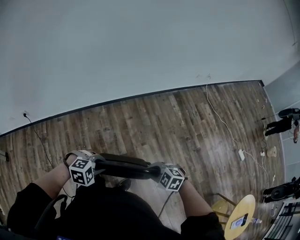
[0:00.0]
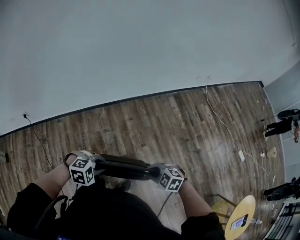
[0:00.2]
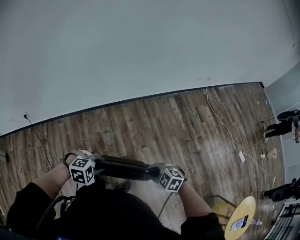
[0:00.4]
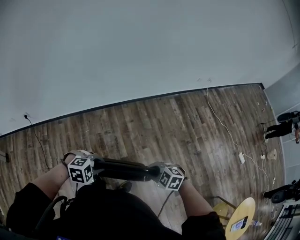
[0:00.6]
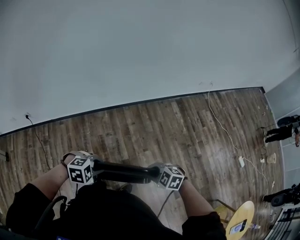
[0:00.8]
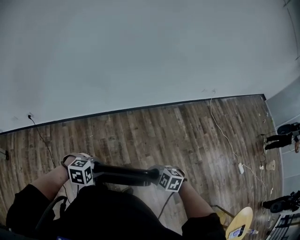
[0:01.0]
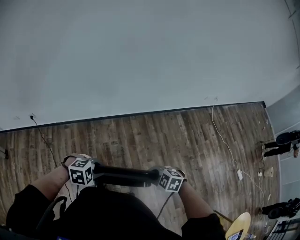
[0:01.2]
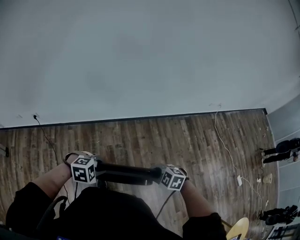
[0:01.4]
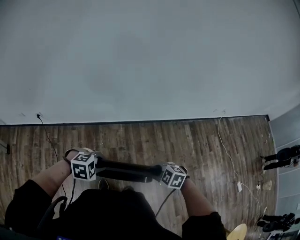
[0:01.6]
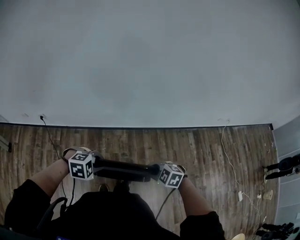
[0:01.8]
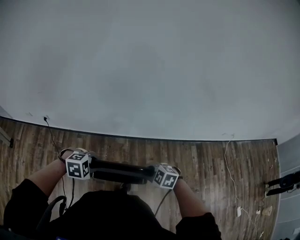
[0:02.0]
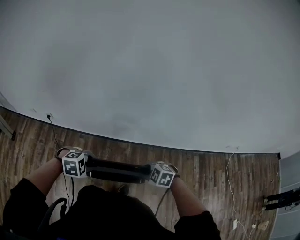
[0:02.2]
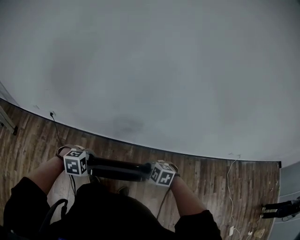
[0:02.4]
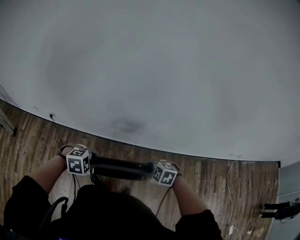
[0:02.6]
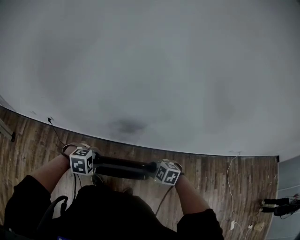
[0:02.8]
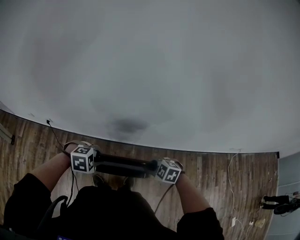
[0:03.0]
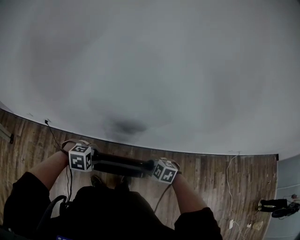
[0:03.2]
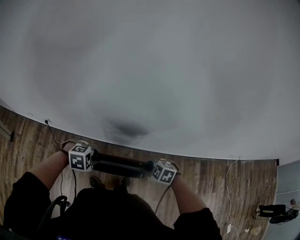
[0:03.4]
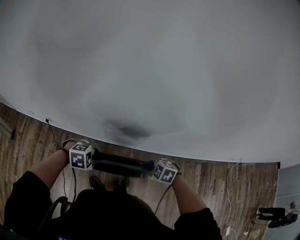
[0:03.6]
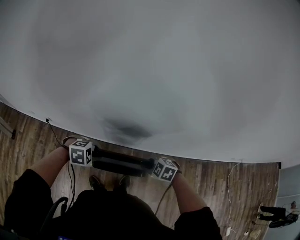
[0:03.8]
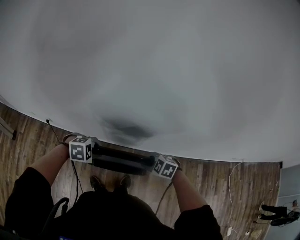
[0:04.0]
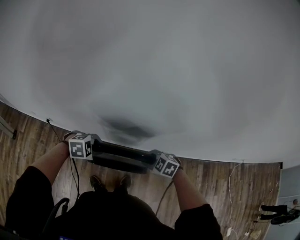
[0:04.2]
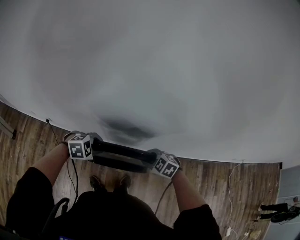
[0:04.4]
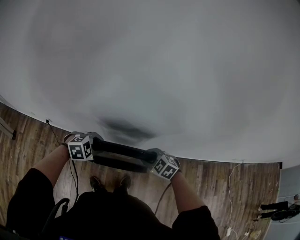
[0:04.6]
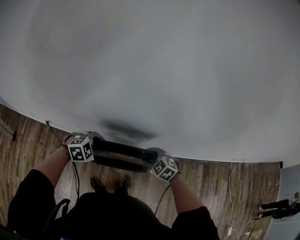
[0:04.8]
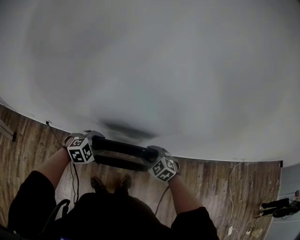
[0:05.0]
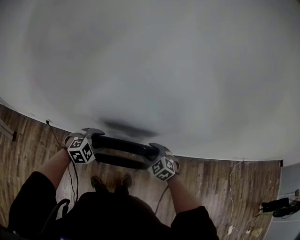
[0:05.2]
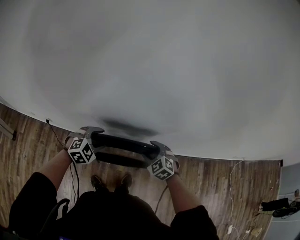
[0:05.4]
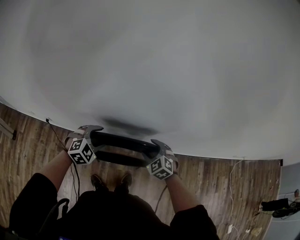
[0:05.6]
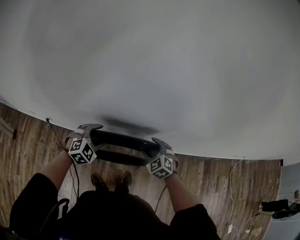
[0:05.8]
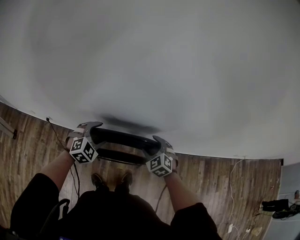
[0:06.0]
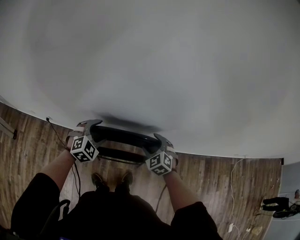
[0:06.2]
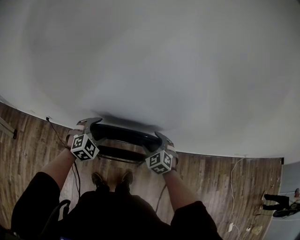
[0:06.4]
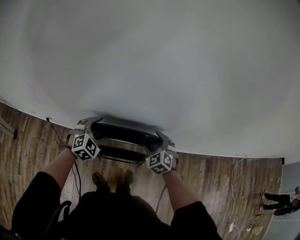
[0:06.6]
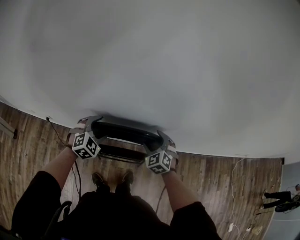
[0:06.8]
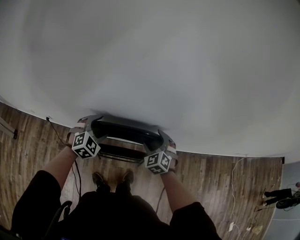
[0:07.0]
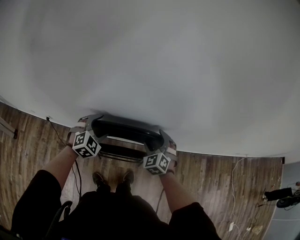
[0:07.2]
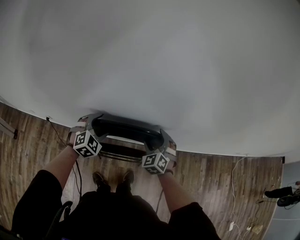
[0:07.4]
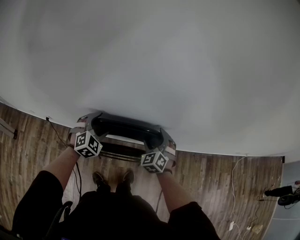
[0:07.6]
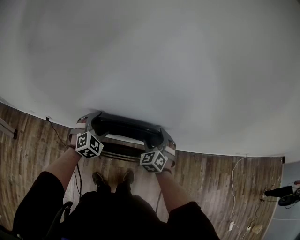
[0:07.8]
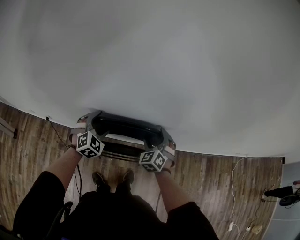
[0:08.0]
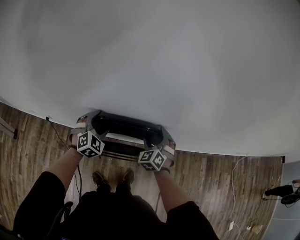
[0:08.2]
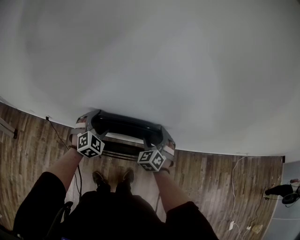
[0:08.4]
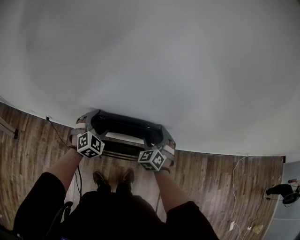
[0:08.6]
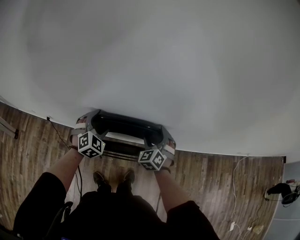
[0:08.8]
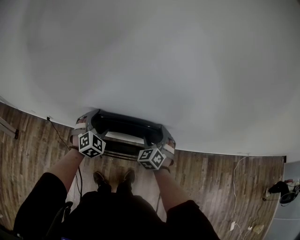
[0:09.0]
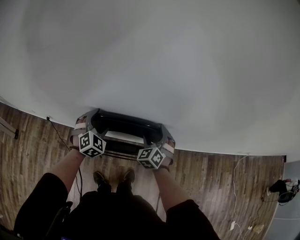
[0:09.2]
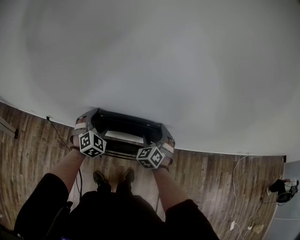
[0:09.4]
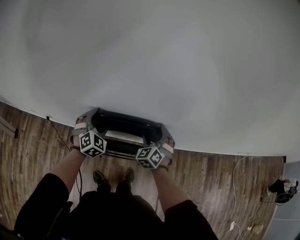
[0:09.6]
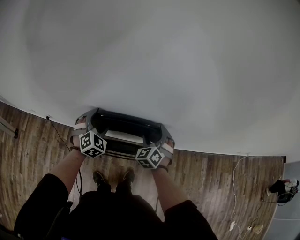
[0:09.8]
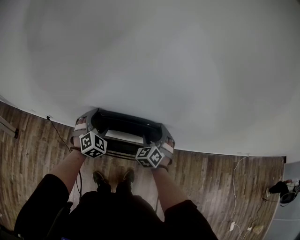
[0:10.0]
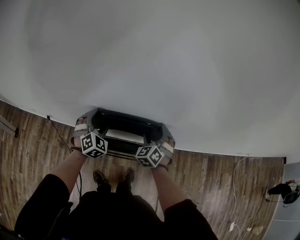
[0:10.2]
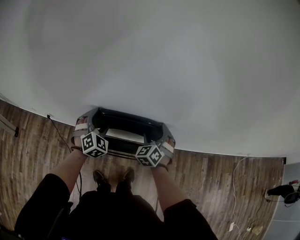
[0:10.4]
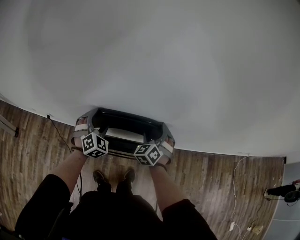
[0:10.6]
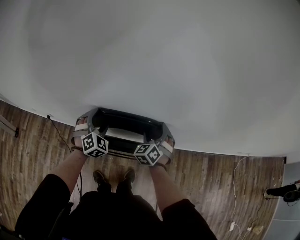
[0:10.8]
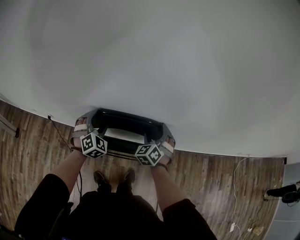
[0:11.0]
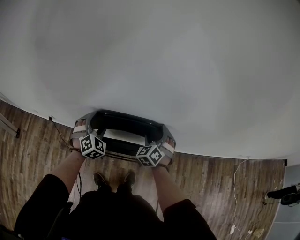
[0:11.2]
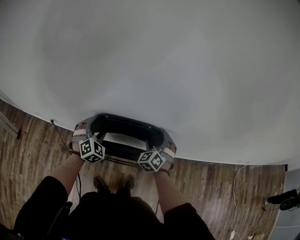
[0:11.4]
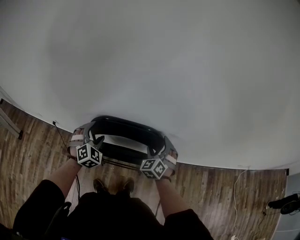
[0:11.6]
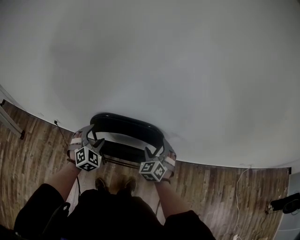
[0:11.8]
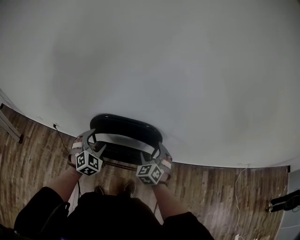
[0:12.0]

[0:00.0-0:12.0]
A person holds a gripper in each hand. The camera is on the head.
0:00.0 to 0:01.6: The right gripper changes place by approximately 25 cm; the left gripper ends up some 20 cm from where it was.
0:01.6 to 0:03.0: The left gripper ends up roughly 25 cm from where it was. Meanwhile the right gripper changes place by some 30 cm.
0:03.0 to 0:04.4: The right gripper shifts by roughly 10 cm, while the left gripper changes place by approximately 10 cm.
0:04.4 to 0:06.0: The left gripper changes place by some 5 cm, rotates about 30 degrees, and opens up, while the right gripper moves some 5 cm, turns by roughly 30 degrees, and opens its fingers.
0:06.0 to 0:07.6: The left gripper heads forward, covering some 5 cm.
0:07.6 to 0:10.4: The grippers move only a little.
0:10.4 to 0:12.0: The grippers both shift backward by roughly 10 cm.

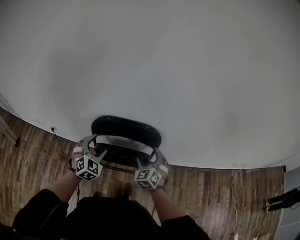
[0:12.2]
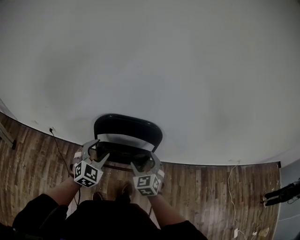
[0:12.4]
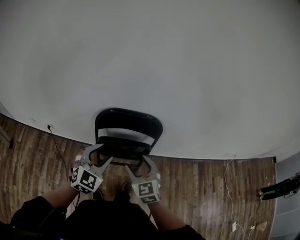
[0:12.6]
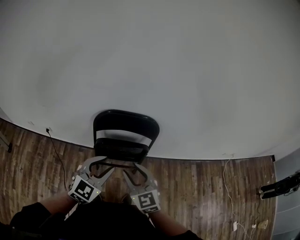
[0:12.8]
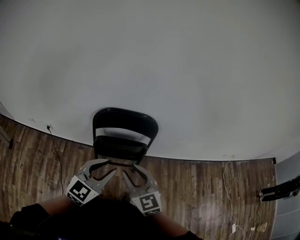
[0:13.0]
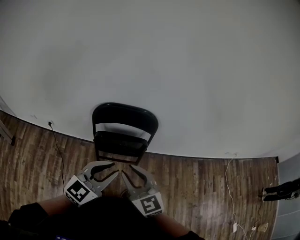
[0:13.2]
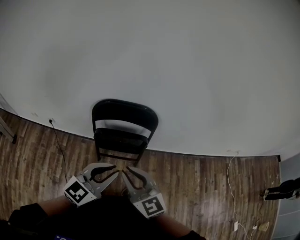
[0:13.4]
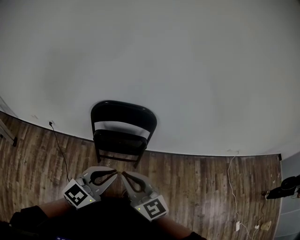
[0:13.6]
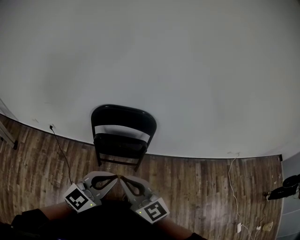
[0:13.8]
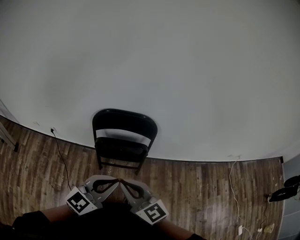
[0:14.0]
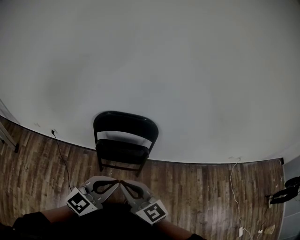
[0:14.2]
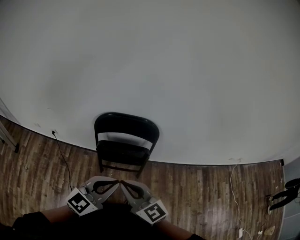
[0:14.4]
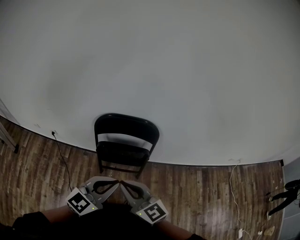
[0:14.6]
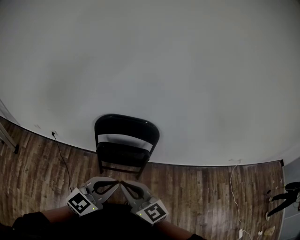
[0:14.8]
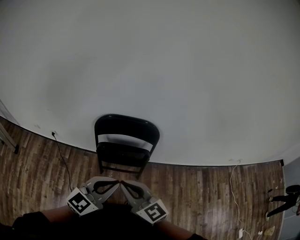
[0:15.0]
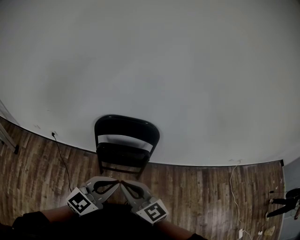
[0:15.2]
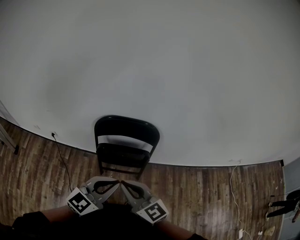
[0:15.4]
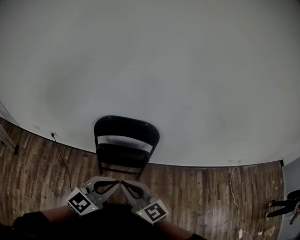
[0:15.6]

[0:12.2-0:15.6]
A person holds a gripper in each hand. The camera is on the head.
0:12.2 to 0:13.8: The left gripper is displaced backward, upward and to the right by roughly 30 cm, rotates roughly 50 degrees, and closes. The right gripper moves backward and upward, about 30 cm, turns by about 50 degrees, and closes.
0:13.8 to 0:15.6: The grippers move only a little.

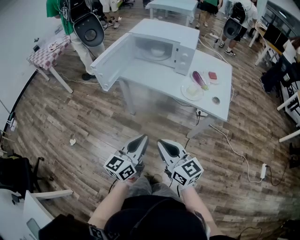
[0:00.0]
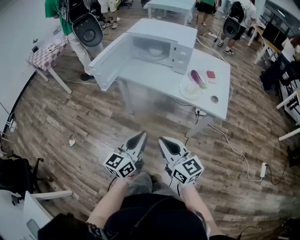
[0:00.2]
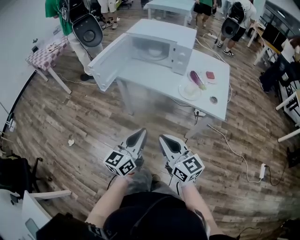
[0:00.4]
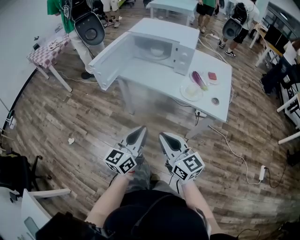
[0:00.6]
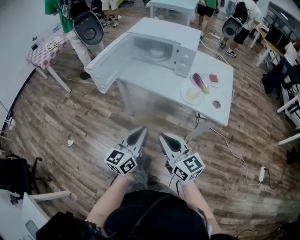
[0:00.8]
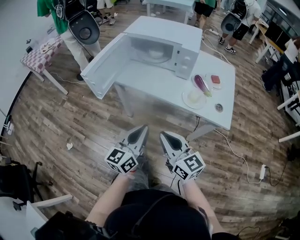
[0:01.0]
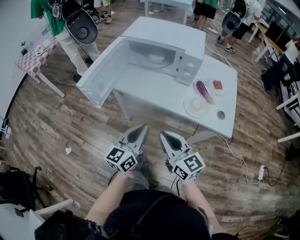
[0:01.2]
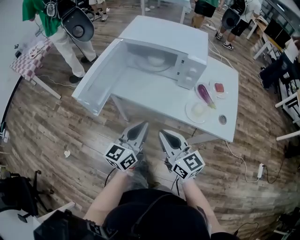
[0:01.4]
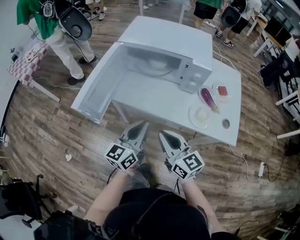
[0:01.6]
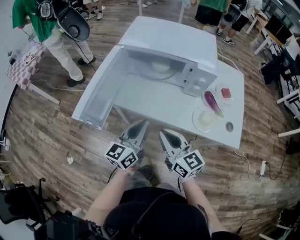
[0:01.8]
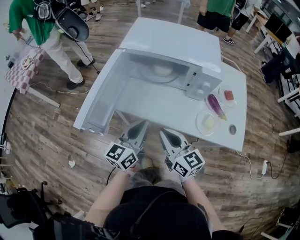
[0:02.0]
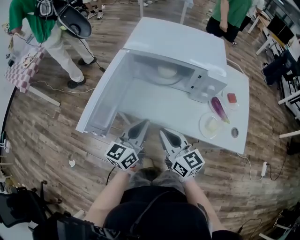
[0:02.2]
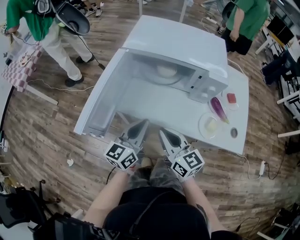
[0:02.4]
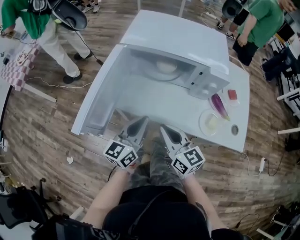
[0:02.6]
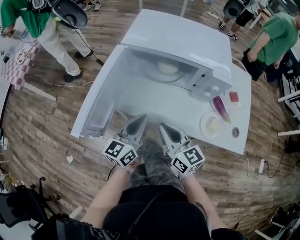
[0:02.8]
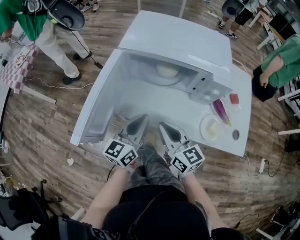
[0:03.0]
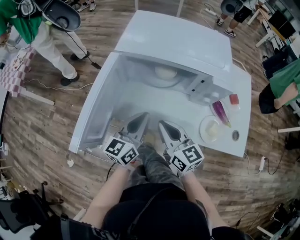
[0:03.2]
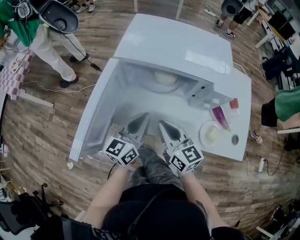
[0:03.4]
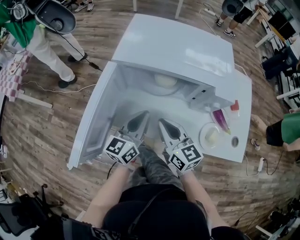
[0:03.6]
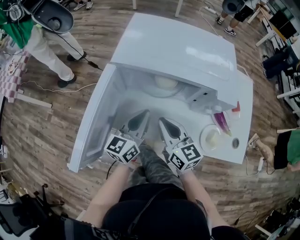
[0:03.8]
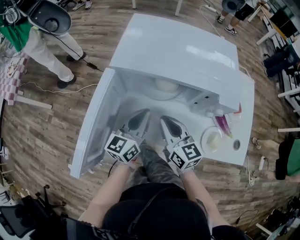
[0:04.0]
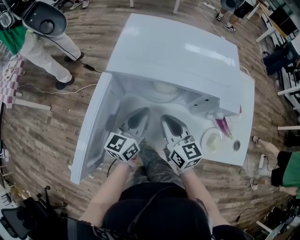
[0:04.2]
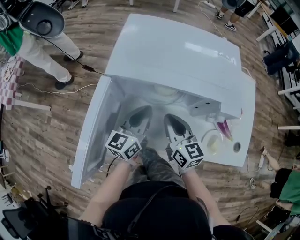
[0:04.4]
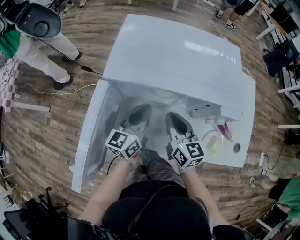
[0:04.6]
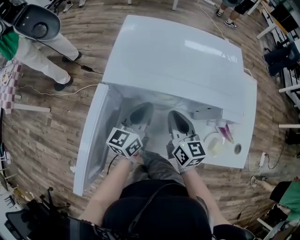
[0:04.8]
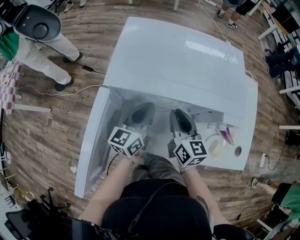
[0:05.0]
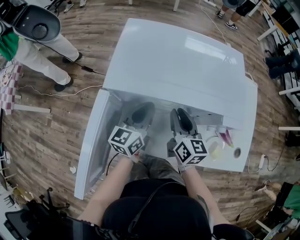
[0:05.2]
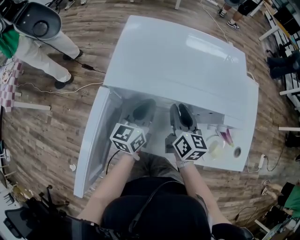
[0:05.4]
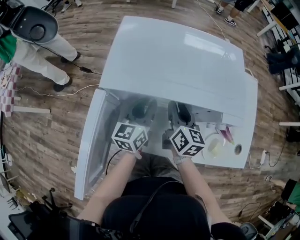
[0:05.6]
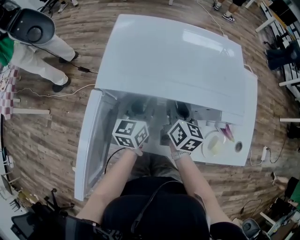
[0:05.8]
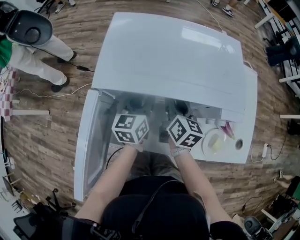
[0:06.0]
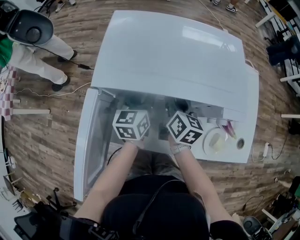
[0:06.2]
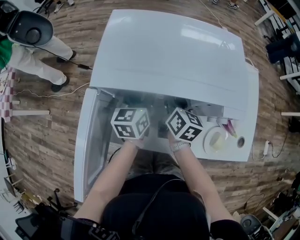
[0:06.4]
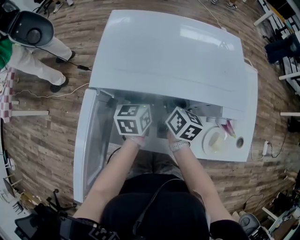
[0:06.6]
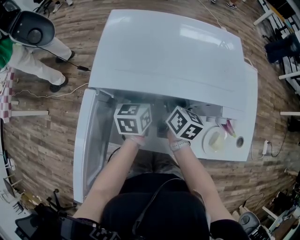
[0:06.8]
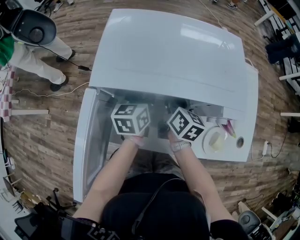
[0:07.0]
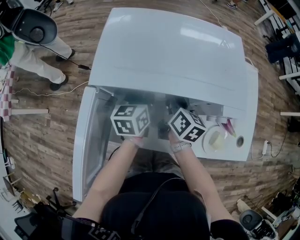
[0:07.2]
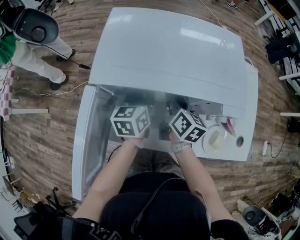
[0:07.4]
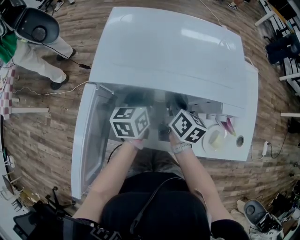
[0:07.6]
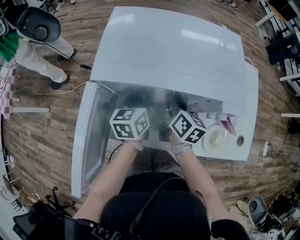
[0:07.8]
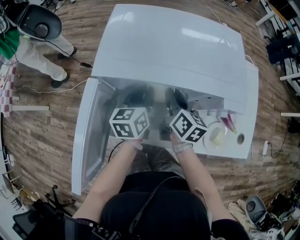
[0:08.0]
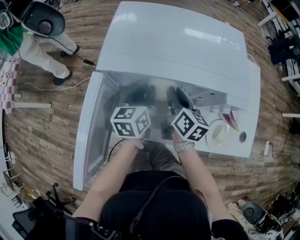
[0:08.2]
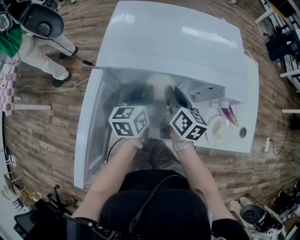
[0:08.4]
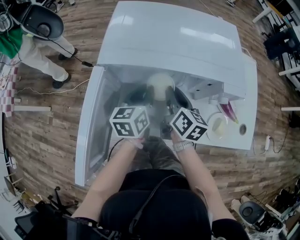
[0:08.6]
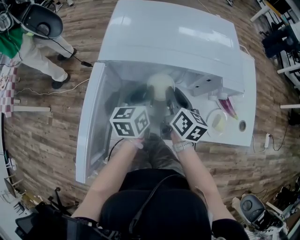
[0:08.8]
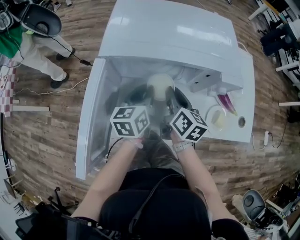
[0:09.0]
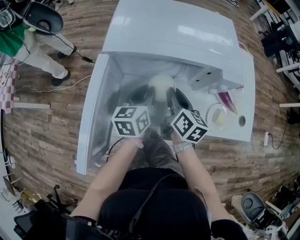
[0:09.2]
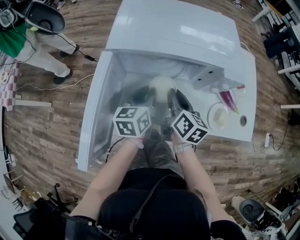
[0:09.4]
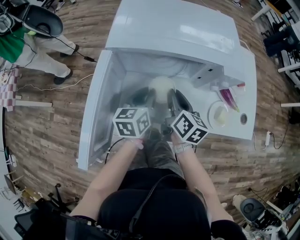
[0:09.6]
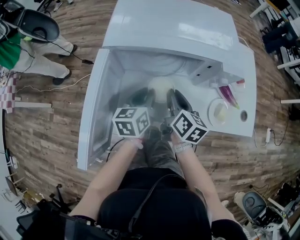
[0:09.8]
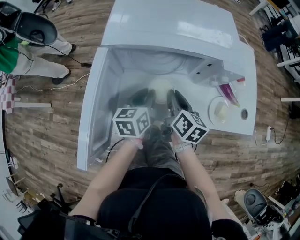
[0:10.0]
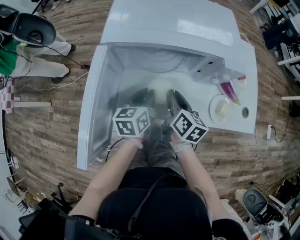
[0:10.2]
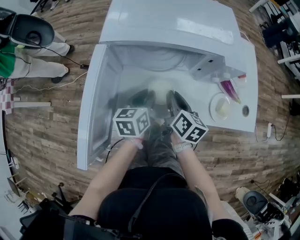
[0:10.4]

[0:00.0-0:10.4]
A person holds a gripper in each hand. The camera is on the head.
0:00.0 to 0:01.4: Both grippers travel together forward, about 25 cm.
0:01.4 to 0:03.0: The grippers both shift forward by about 20 cm.
0:03.0 to 0:04.4: Both grippers move forward, approximately 15 cm.
0:04.4 to 0:06.0: The grippers both shift forward by roughly 10 cm. The right gripper swivels about 30 degrees, and opens its fingers. The left gripper opens.
0:06.0 to 0:07.4: The grippers make only small movements.
0:07.4 to 0:09.0: The grippers both shift backward by some 10 cm.
0:09.0 to 0:10.4: The two grippers go about 5 cm backward.
